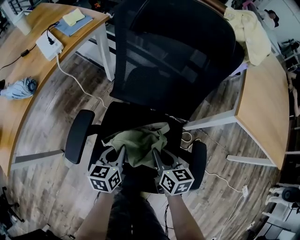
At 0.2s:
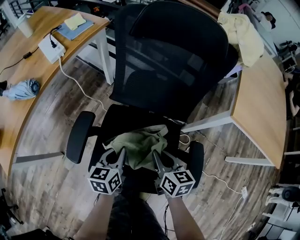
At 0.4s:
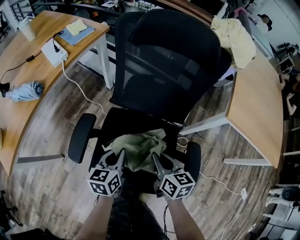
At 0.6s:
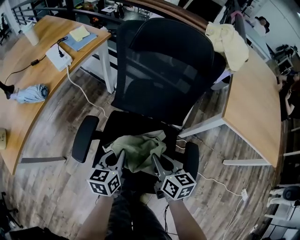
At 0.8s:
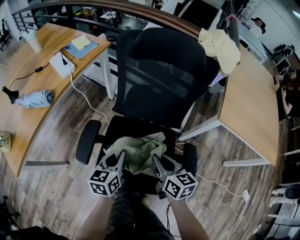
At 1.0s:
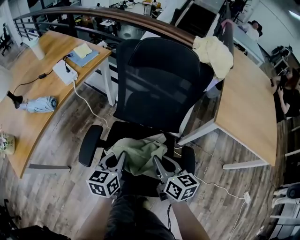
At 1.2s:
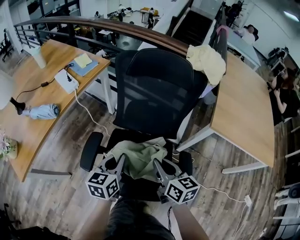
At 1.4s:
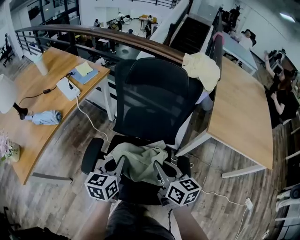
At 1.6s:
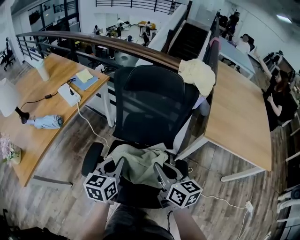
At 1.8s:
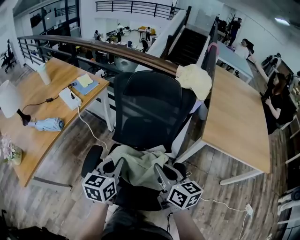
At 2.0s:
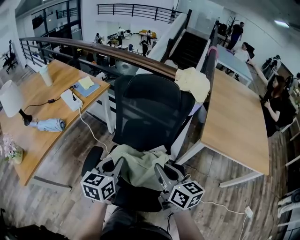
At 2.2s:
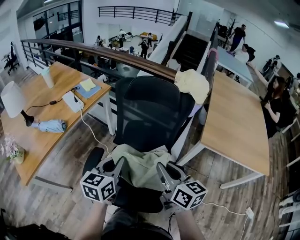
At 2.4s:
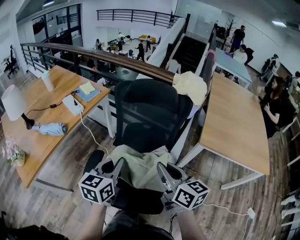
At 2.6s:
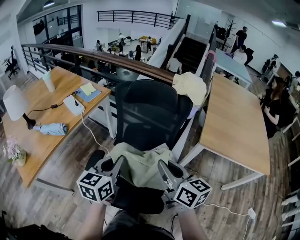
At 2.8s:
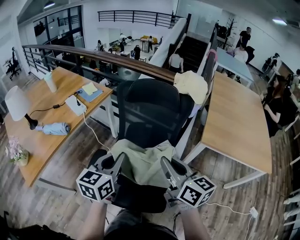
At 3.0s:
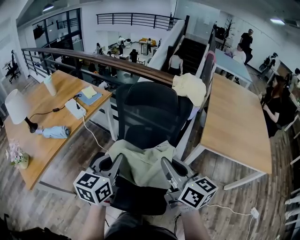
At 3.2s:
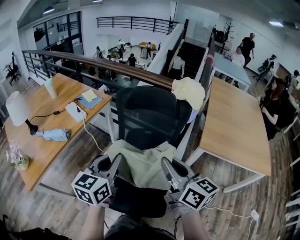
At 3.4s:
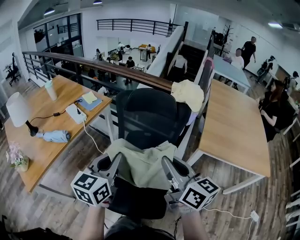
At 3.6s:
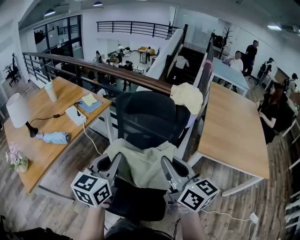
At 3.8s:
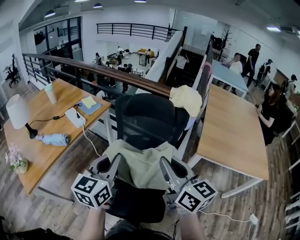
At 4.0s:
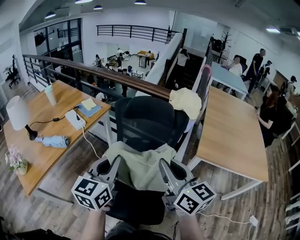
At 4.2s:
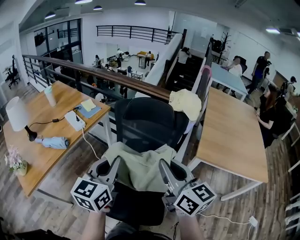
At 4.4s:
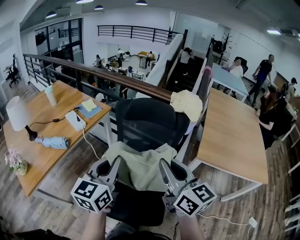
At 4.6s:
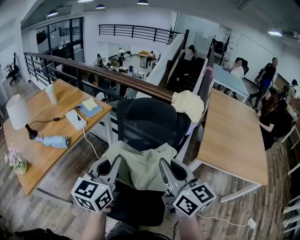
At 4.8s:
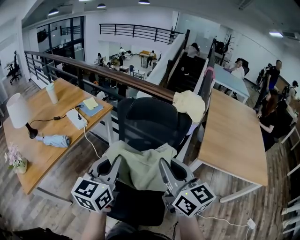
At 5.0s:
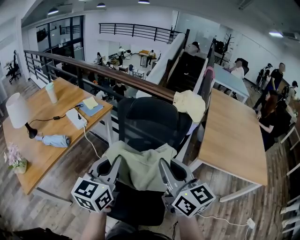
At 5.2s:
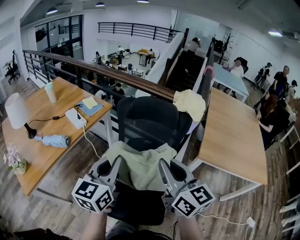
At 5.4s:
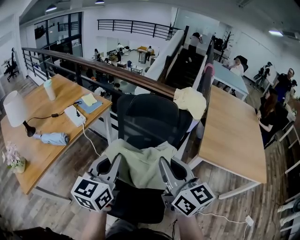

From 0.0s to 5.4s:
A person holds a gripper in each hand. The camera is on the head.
From 0.0s to 1.4s: Both grippers travel together upward, some 20 cm.
From 1.4s to 2.8s: Both grippers travel together upward, some 15 cm.
From 2.8s to 4.0s: The two grippers go roughly 5 cm upward.
From 4.0s to 5.4s: The grippers stay close to where they were, moving slightly.

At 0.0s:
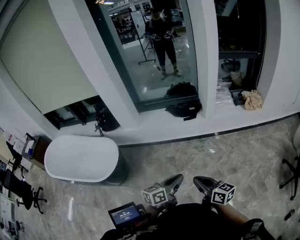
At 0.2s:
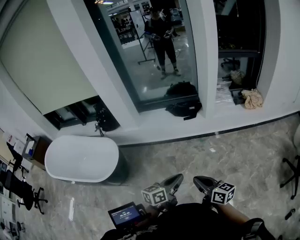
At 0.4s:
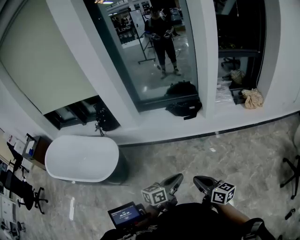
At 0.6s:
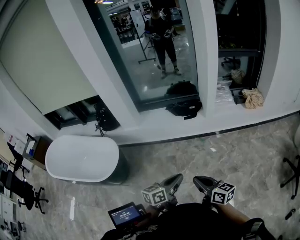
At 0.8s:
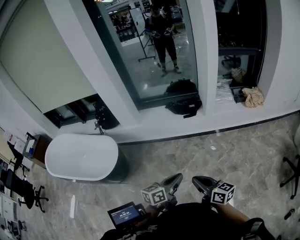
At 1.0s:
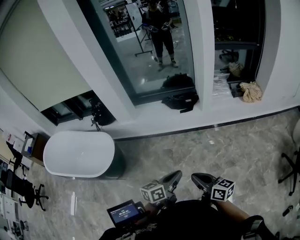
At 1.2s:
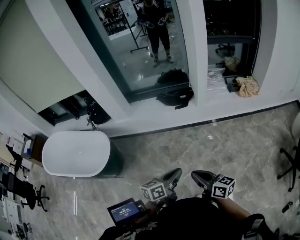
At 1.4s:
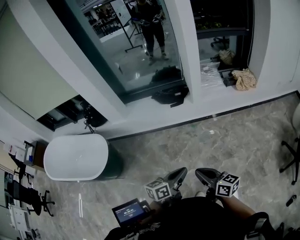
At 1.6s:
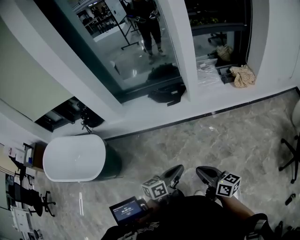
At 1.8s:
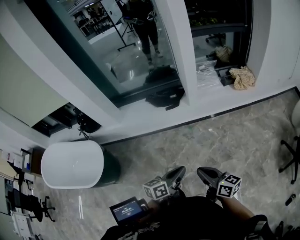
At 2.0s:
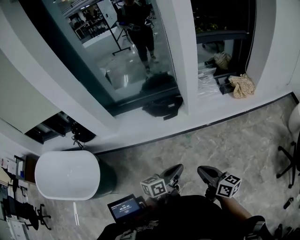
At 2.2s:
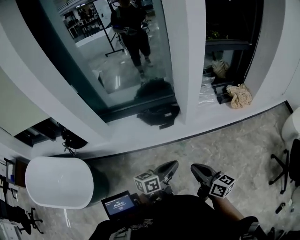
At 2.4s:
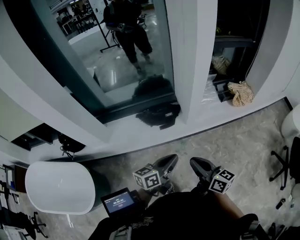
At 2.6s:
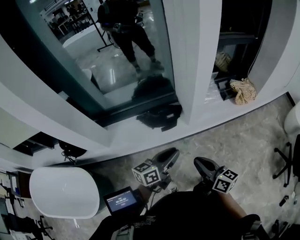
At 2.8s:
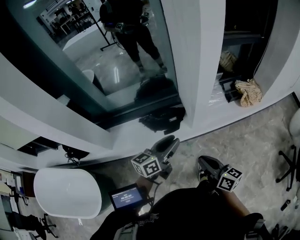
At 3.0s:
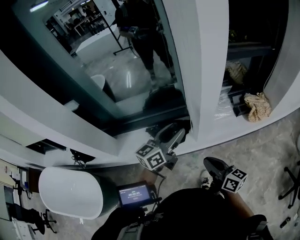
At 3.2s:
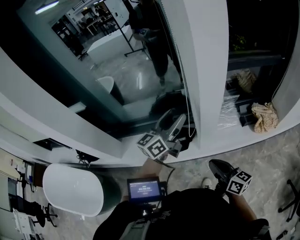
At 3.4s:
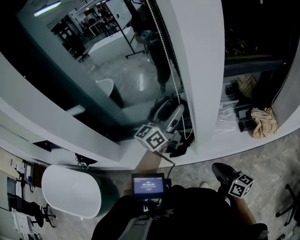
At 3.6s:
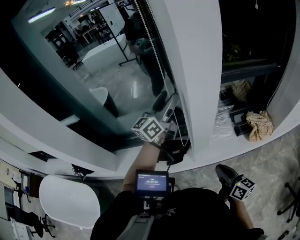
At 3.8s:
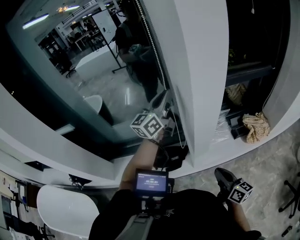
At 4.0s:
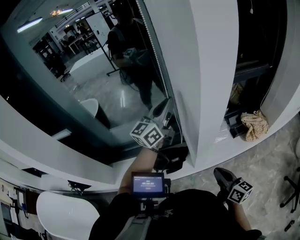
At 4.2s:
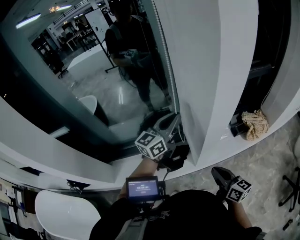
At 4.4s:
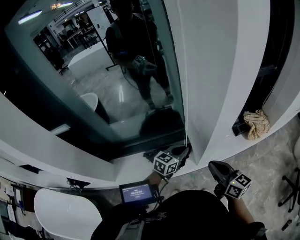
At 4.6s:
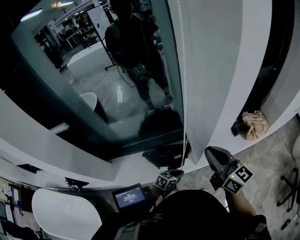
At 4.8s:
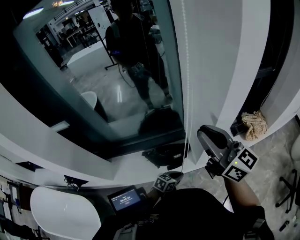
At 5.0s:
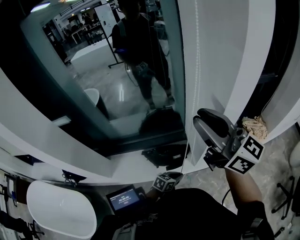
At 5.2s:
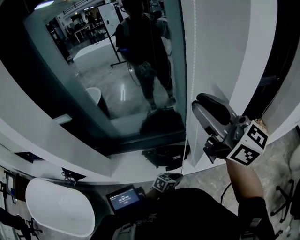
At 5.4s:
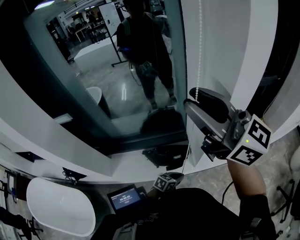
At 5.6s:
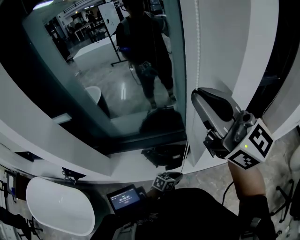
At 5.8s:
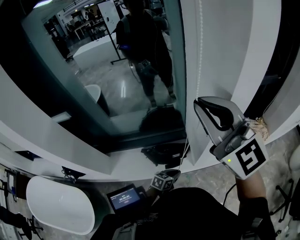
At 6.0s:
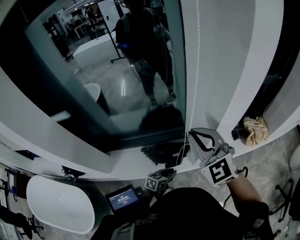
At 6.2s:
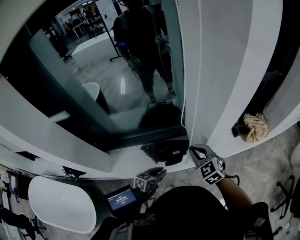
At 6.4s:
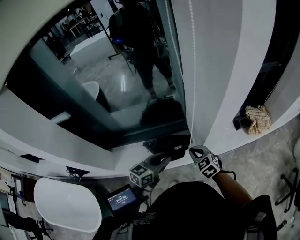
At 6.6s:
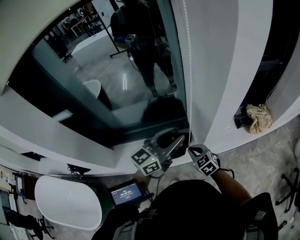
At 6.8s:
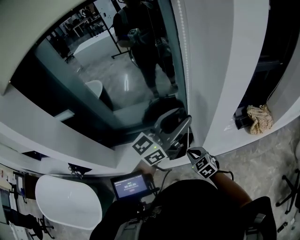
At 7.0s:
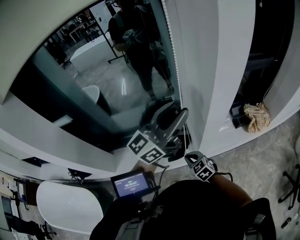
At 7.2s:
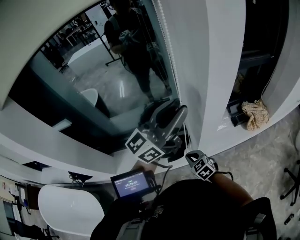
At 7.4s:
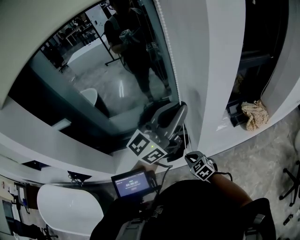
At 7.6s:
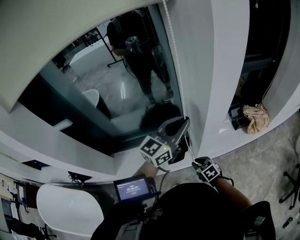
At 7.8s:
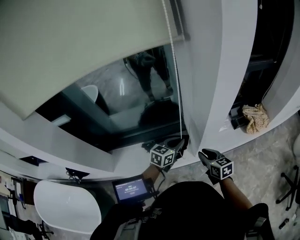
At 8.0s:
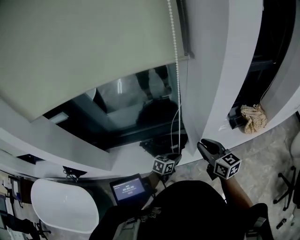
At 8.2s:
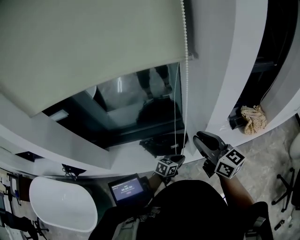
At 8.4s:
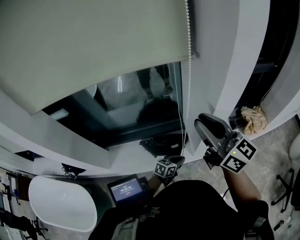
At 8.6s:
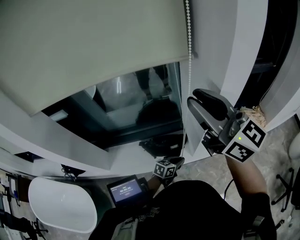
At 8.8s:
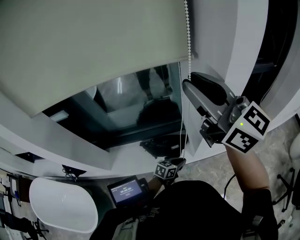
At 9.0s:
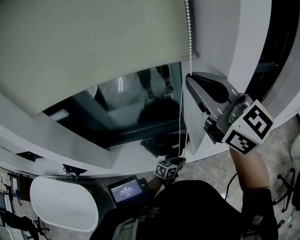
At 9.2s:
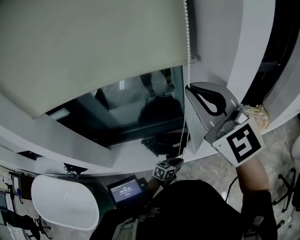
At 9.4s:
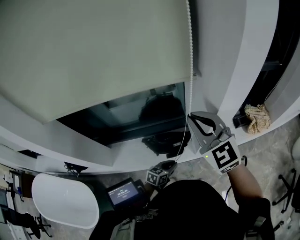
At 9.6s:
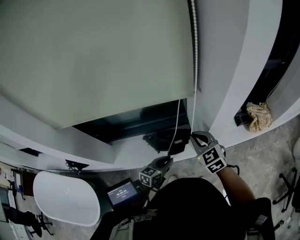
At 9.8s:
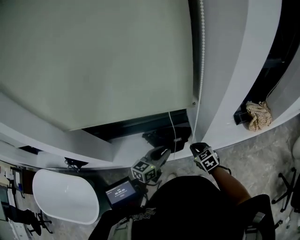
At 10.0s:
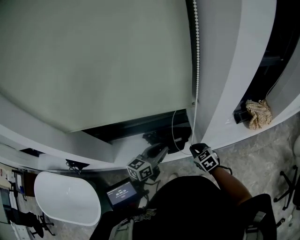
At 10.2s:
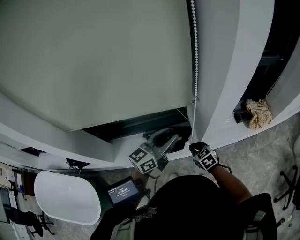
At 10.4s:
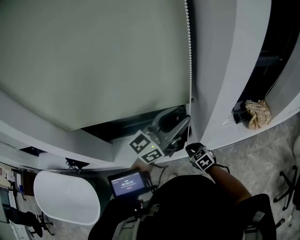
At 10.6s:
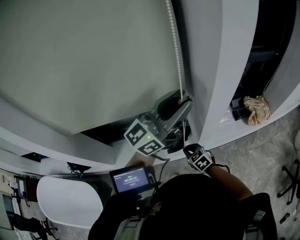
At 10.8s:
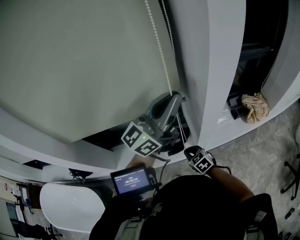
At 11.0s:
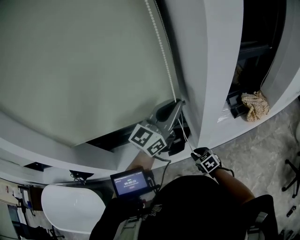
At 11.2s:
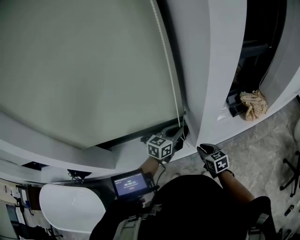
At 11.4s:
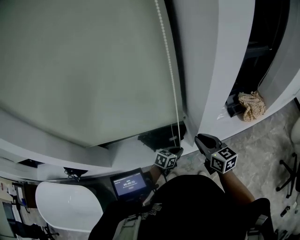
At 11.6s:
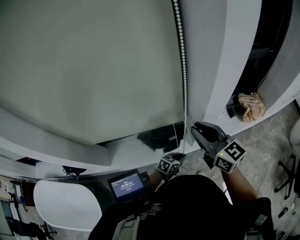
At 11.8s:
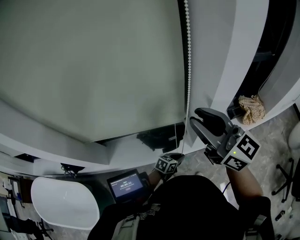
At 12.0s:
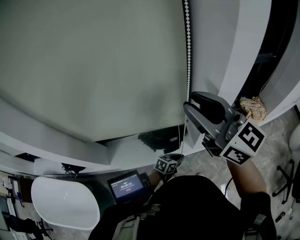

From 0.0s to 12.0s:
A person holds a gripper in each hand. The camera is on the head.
From 0.0s to 1.6s: Both grippers move to the right, approximately 15 cm.
From 1.6s to 3.0s: Both grippers are carried forward, some 50 cm. The left gripper turns by some 30 degrees, and opens its fingers.
From 3.0s to 4.4s: The left gripper travels downward and forward by approximately 20 cm, rotates roughly 30 degrees, and closes its fingers, while the right gripper goes approximately 10 cm forward.
From 4.4s to 6.0s: The right gripper heads upward and to the left, covering some 20 cm, rotates around the line of its fingers by about 60 degrees, counterclockwise from behind, and opens, then closes once more. Meanwhile the left gripper goes roughly 20 cm downward, backward and to the left, and changes its angle by roughly 20 degrees.
From 6.0s to 7.6s: The left gripper is displaced upward by roughly 35 cm, and points its fingers some 40 degrees further upward; the right gripper is displaced downward by roughly 35 cm, and angles its fingers downward, by some 40 degrees.
From 7.6s to 9.0s: The left gripper travels downward by about 35 cm, and points its fingers roughly 40 degrees further downward; the right gripper moves upward, roughly 50 cm, and tilts its fingers about 60 degrees upward.
From 9.0s to 10.4s: The left gripper travels upward by approximately 40 cm, angles its fingers upward, by roughly 50 degrees, and opens; the right gripper shifts approximately 50 cm downward, and tips its fingers downward by some 60 degrees.
From 10.4s to 12.0s: The right gripper goes some 40 cm upward, tips its fingers upward by some 60 degrees, and opens up; the left gripper goes approximately 40 cm downward, tilts its fingers about 60 degrees downward, and closes up.

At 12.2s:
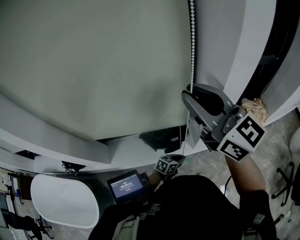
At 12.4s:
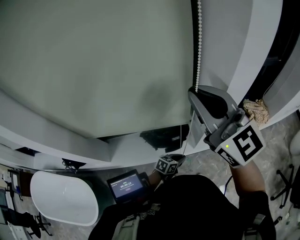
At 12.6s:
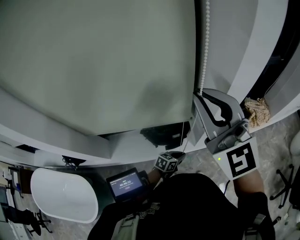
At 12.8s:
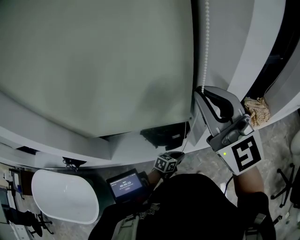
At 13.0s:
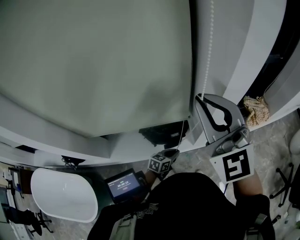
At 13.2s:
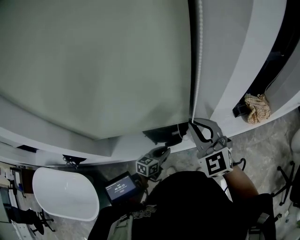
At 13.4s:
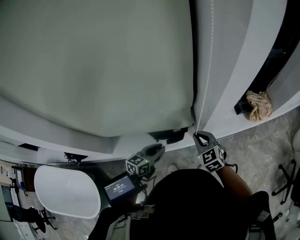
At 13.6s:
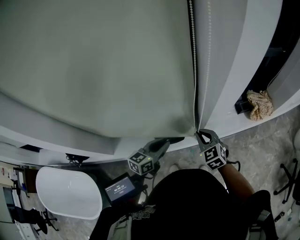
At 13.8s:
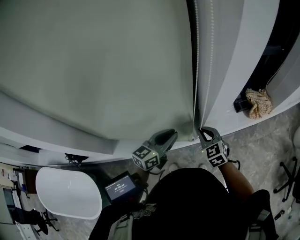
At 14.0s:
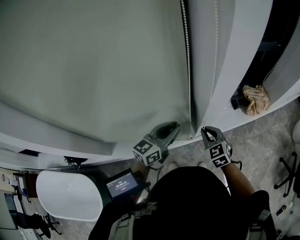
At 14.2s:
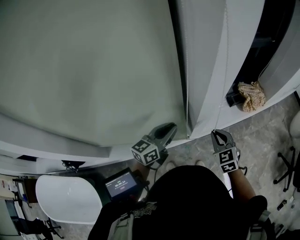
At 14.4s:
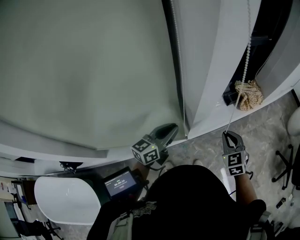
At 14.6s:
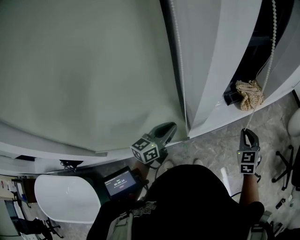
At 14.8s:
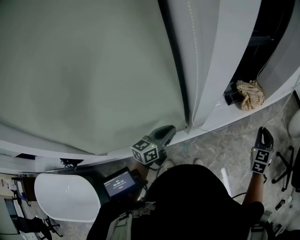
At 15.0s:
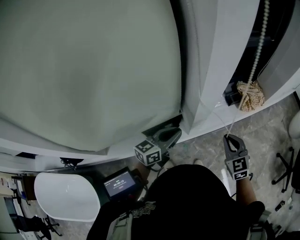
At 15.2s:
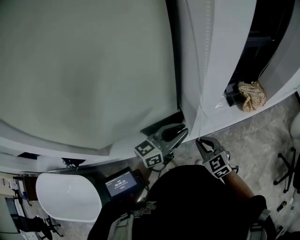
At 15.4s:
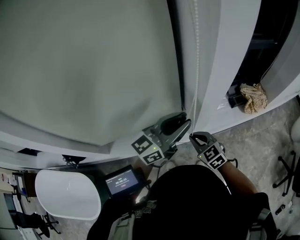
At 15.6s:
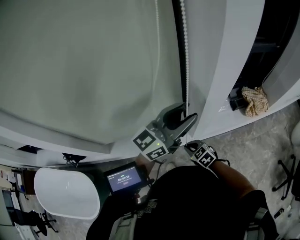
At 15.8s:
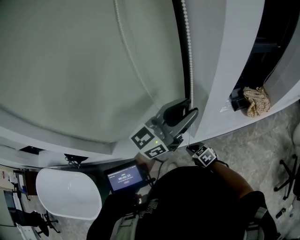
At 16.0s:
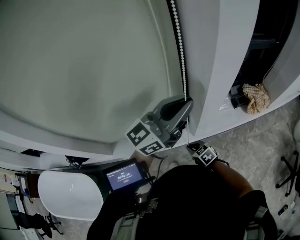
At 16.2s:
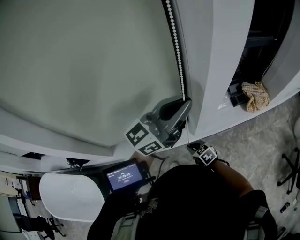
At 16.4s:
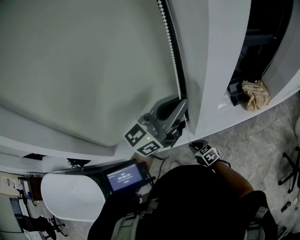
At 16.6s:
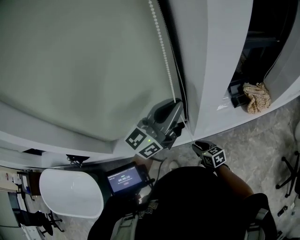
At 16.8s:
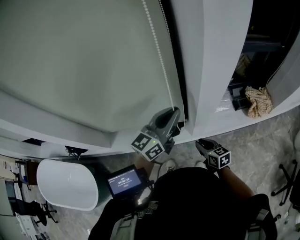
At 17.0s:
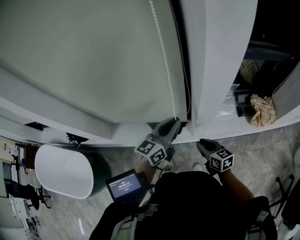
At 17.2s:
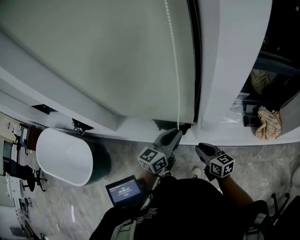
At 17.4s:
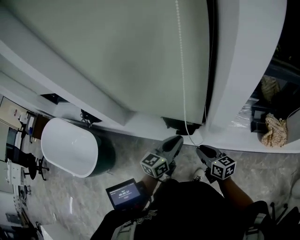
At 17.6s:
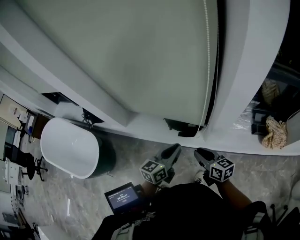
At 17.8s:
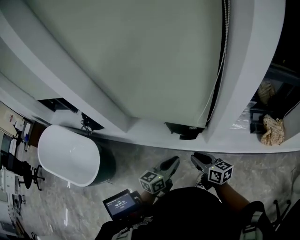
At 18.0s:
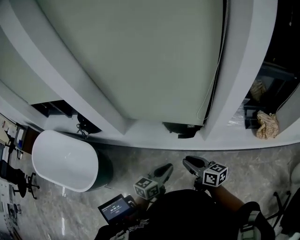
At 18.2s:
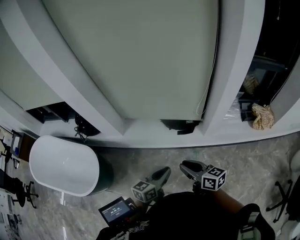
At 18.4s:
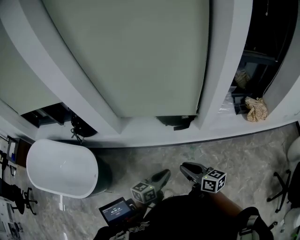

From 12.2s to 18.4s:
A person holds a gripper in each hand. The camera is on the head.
From 12.2s to 13.8s: The right gripper heads downward, covering about 40 cm, and tips its fingers downward by roughly 40 degrees, while the left gripper goes approximately 20 cm upward, and points its fingers about 30 degrees further upward.
From 13.8s to 15.4s: The right gripper travels upward and back again, roughly 10 cm each way, while the left gripper travels upward by approximately 15 cm, and turns by approximately 20 degrees.
From 15.4s to 16.8s: The left gripper travels upward and back again, some 10 cm each way. The right gripper goes some 10 cm downward and to the right, and swivels roughly 40 degrees.
From 16.8s to 18.4s: The right gripper heads to the left, backward and upward, covering some 35 cm. The left gripper is displaced backward, to the left and downward by approximately 50 cm, and swivels about 30 degrees.
